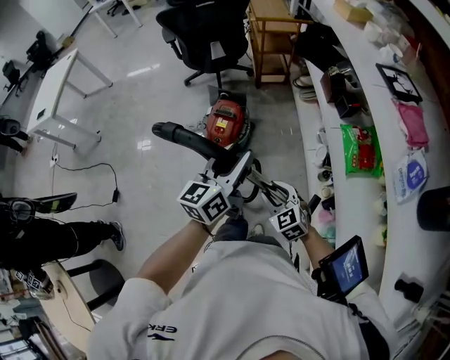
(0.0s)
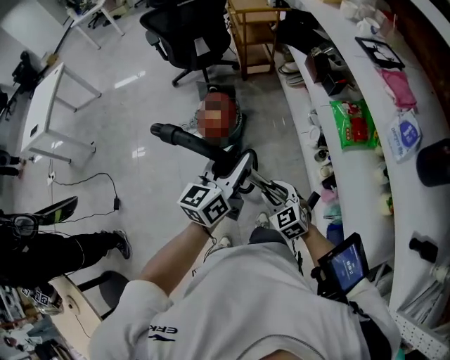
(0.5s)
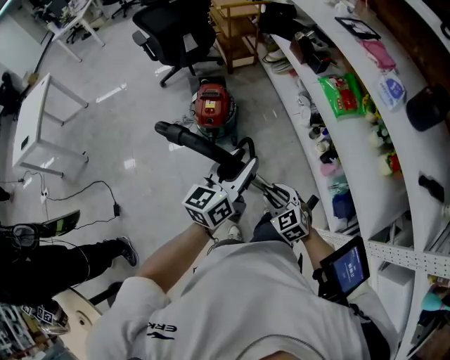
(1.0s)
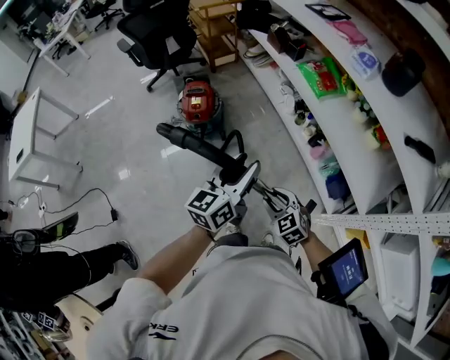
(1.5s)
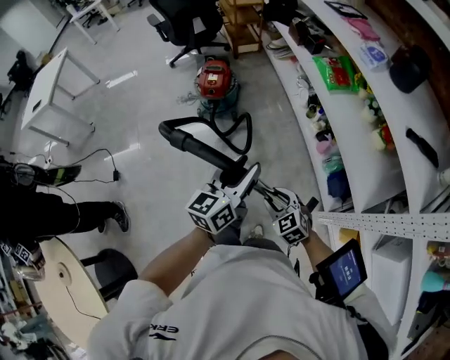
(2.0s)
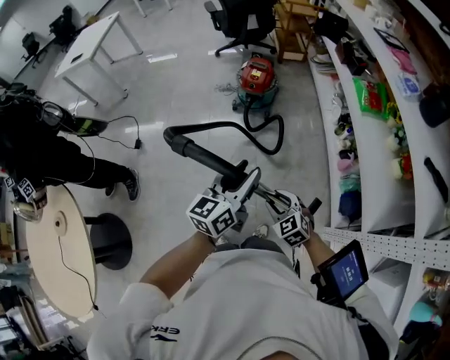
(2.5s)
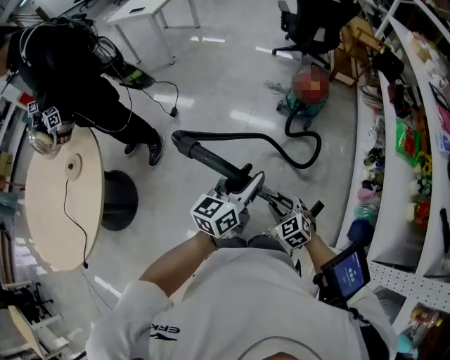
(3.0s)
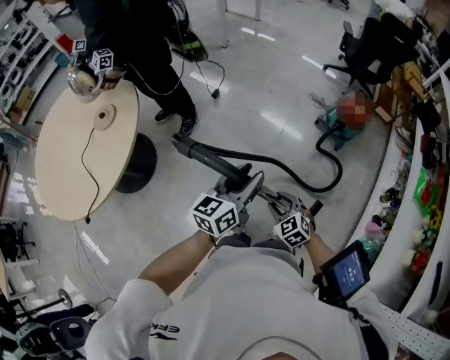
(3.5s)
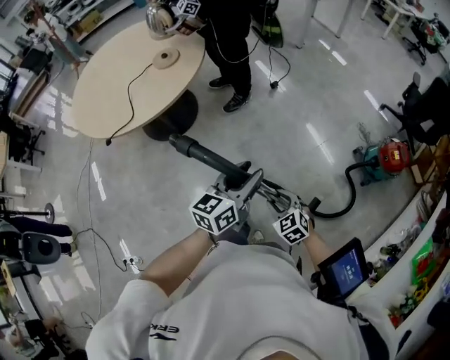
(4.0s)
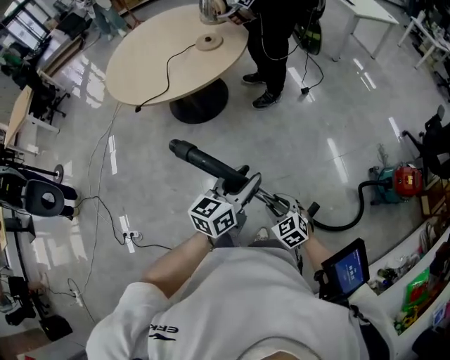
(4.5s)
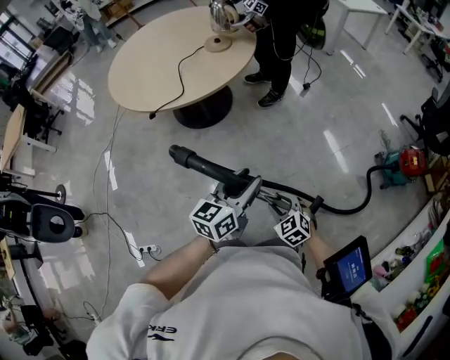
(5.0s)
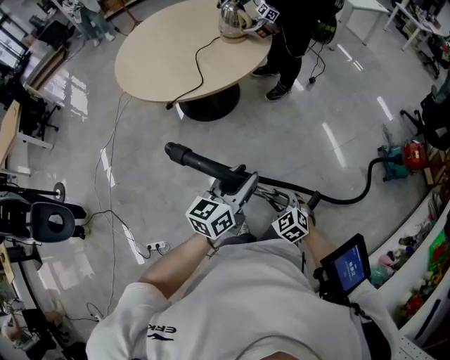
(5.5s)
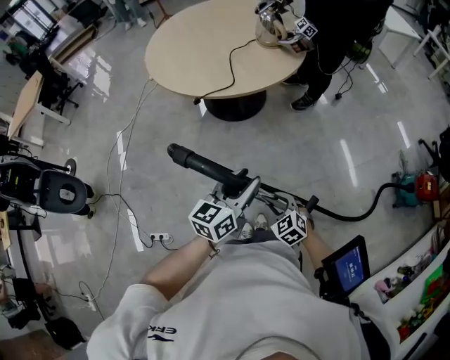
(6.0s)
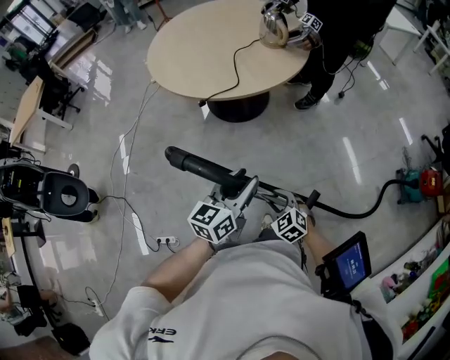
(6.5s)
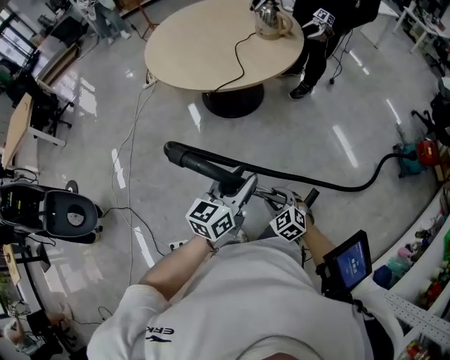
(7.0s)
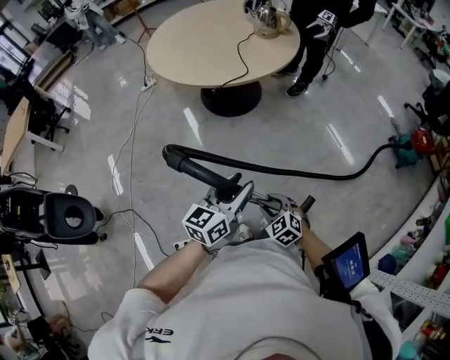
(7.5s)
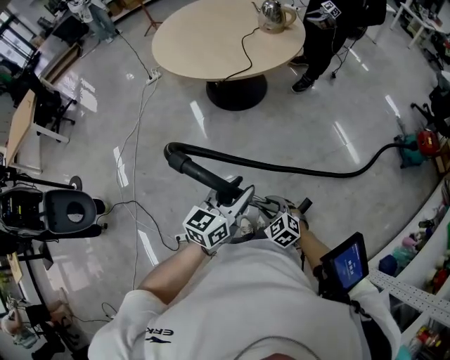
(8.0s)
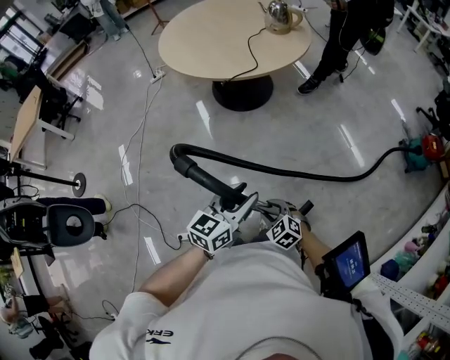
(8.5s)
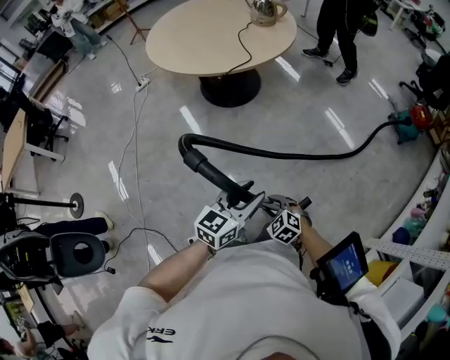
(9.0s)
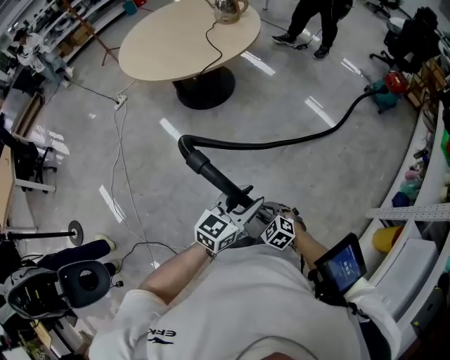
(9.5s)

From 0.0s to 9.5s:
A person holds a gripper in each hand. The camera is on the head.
From 0.0s to 2.0s: The two grippers travel together, backward, some 40 cm.
From 2.0s to 4.0s: The pair of grippers is taken approximately 50 cm. The left gripper rotates about 70 degrees; the right gripper rotates approximately 70 degrees.
From 4.0s to 5.5s: Both grippers move to the left, about 35 cm.
From 5.5s to 7.5s: Both grippers move to the left and backward, some 30 cm.
From 7.5s to 9.5s: The left gripper is displaced backward by some 20 cm, and changes its angle by some 30 degrees. Meanwhile the right gripper travels backward and to the left by approximately 20 cm.

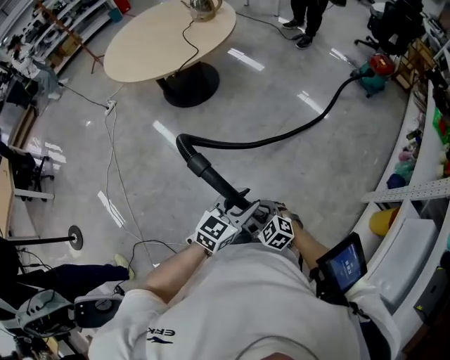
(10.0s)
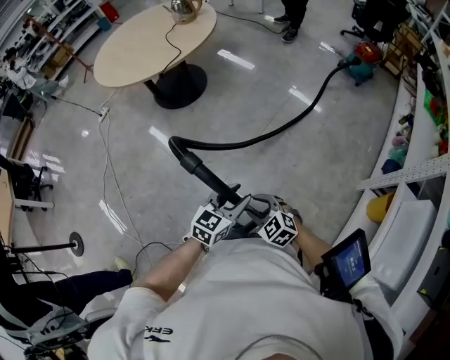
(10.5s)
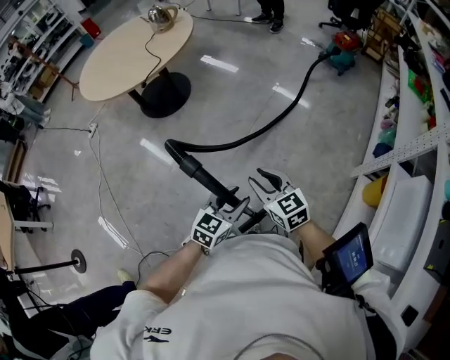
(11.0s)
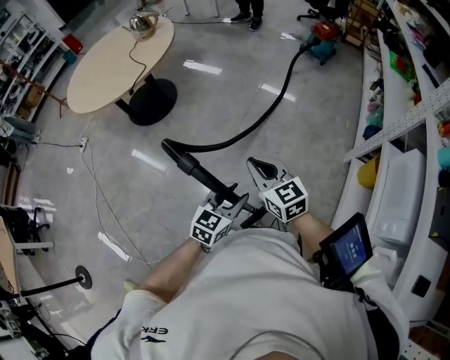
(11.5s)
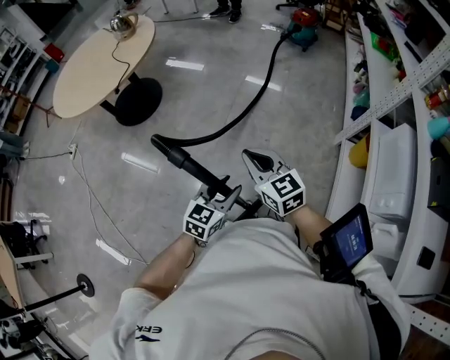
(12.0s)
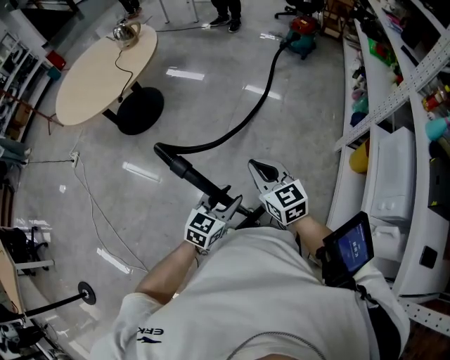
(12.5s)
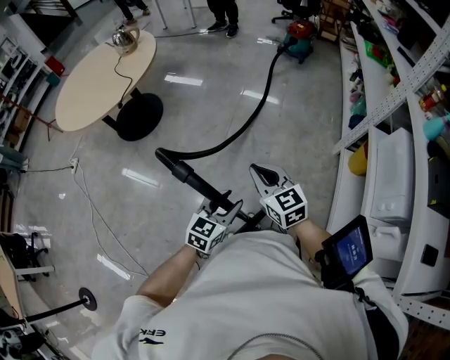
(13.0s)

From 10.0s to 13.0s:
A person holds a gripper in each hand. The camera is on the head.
From 10.0s to 11.5s: The left gripper heads backward and to the right, covering approximately 10 cm; the right gripper shifts some 20 cm upward and to the right, tilts its fingers about 30 degrees upward, and closes its fingers.
From 11.5s to 13.0s: The grippers make only small movements.

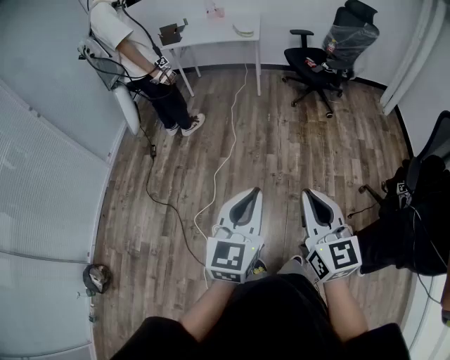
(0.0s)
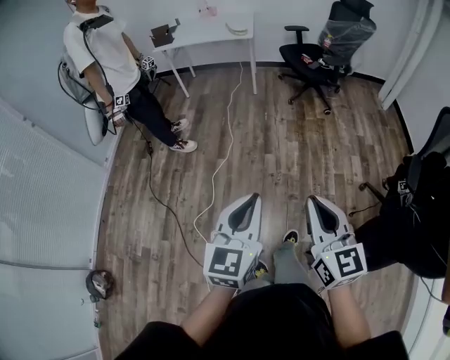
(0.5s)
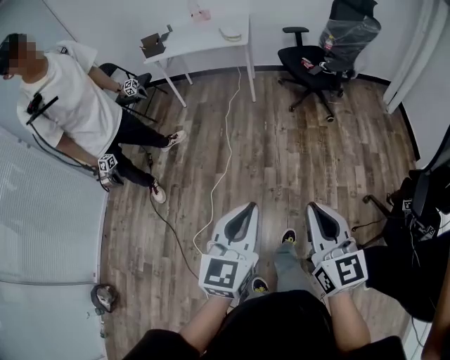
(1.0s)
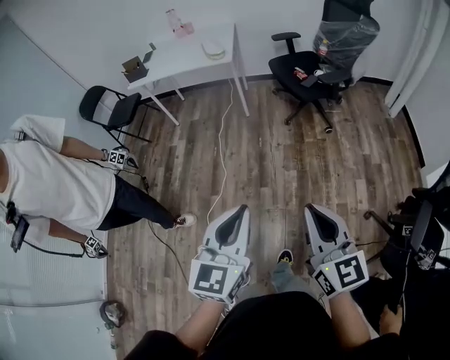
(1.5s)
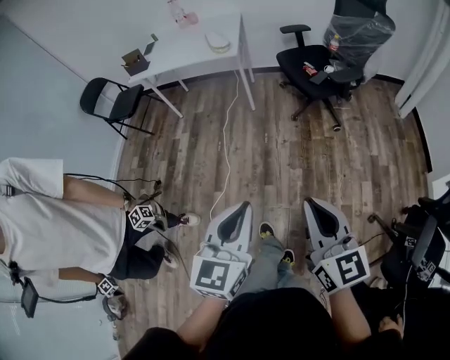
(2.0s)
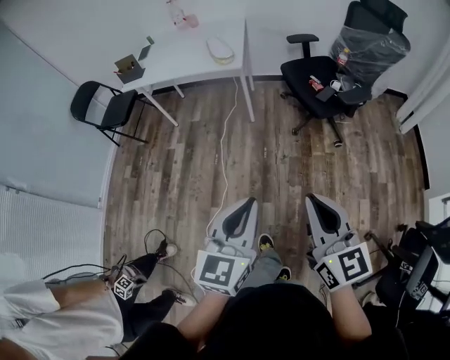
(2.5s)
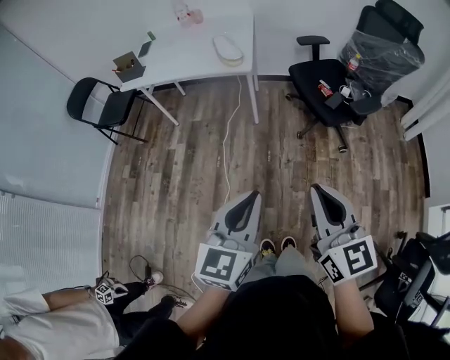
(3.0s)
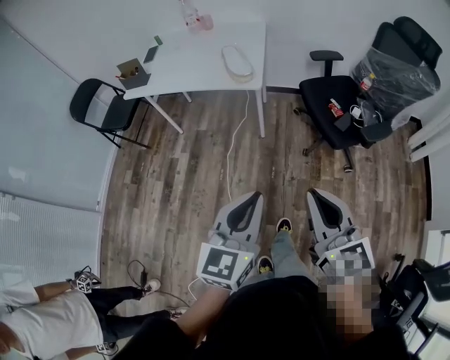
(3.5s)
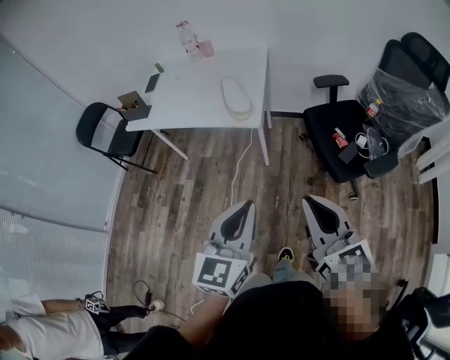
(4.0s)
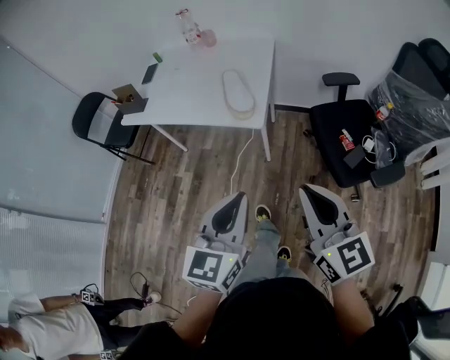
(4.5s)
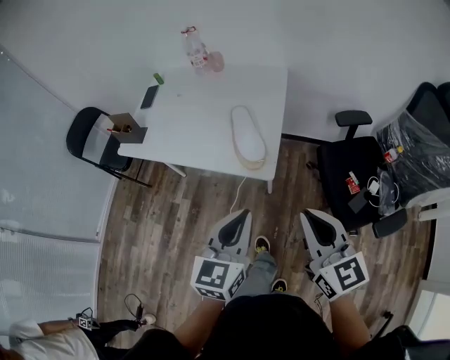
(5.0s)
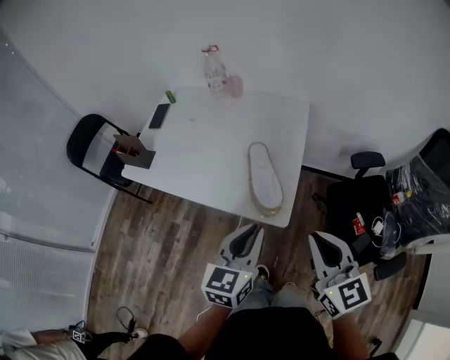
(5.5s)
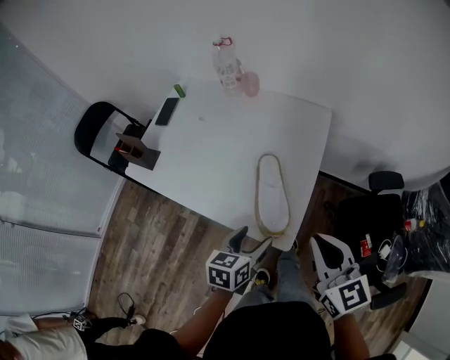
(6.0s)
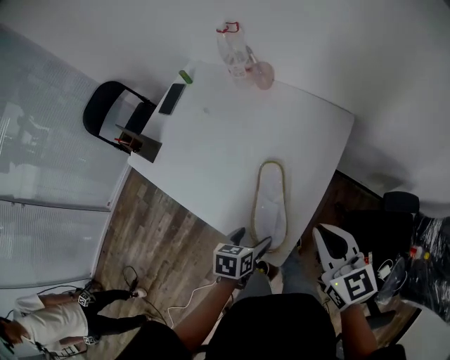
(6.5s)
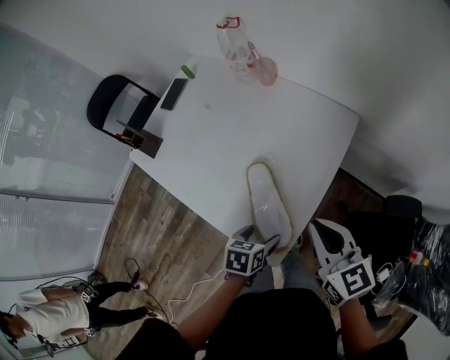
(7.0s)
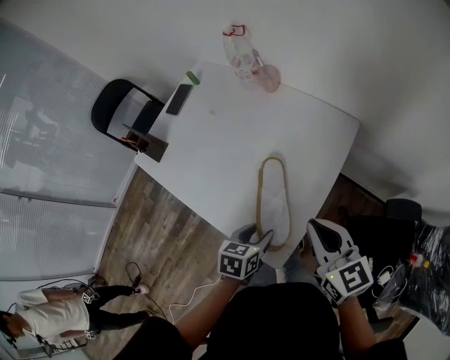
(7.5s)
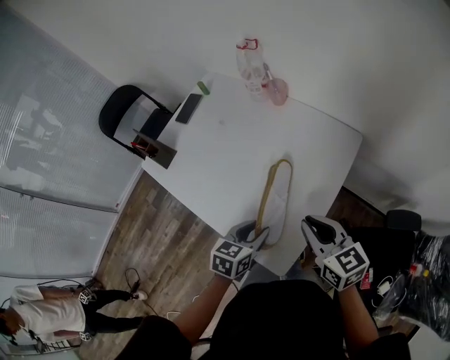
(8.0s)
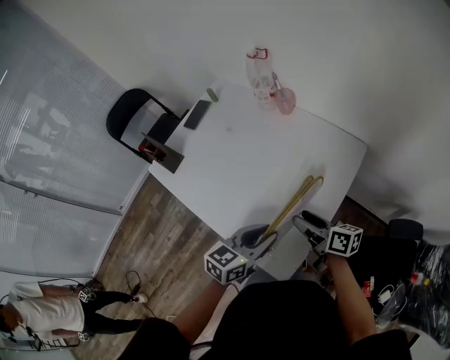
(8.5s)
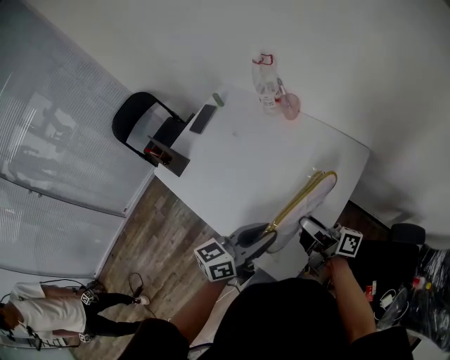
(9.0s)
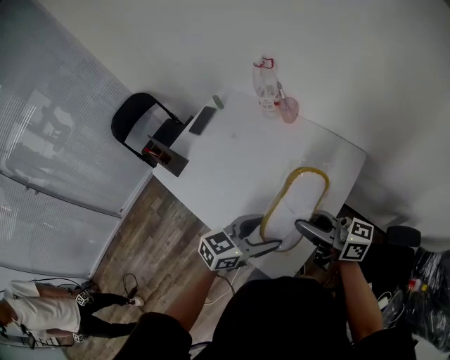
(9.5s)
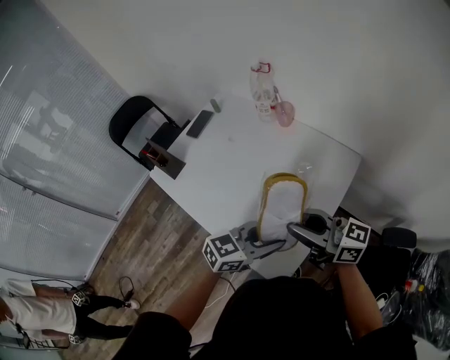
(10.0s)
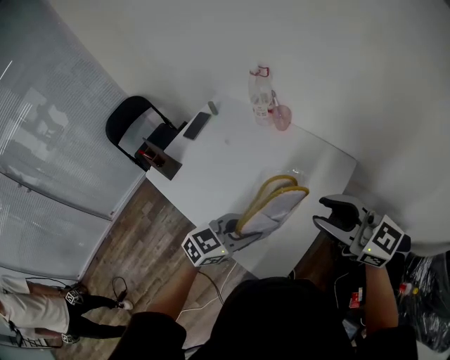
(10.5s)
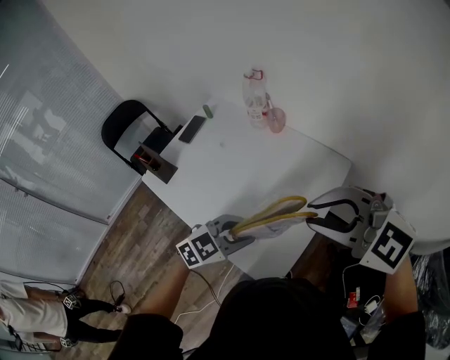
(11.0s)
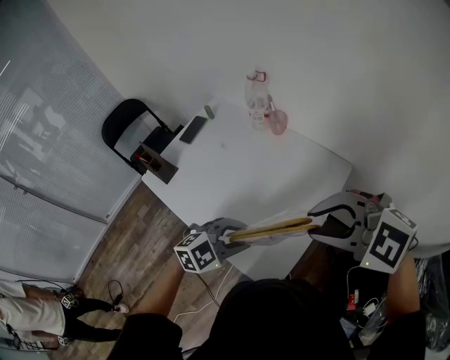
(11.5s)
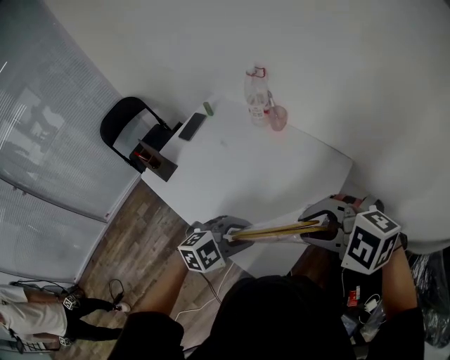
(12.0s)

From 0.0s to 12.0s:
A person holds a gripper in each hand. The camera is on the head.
From 0.0s to 2.0s: The two grippers travel together, forward, approximately 40 cm.
From 2.0s to 4.0s: The pair of grippers is taken forward, about 50 cm.
From 4.0s to 6.0s: Both grippers are carried forward, roughly 50 cm. The left gripper is displaced downward by approximately 20 cm, turns by some 40 degrees, and opens up.
From 6.0s to 8.0s: The left gripper goes about 10 cm forward, and closes its fingers; the right gripper goes some 20 cm forward and downward, and turns by some 20 degrees.
From 8.0s to 10.0s: Both grippers move upward, approximately 10 cm. The right gripper tilts its fingers approximately 30 degrees upward, and opens its fingers; the left gripper turns by approximately 40 degrees, and opens, then closes again.
From 10.0s to 12.0s: The right gripper angles its fingers downward, by about 60 degrees, while the left gripper ends up roughly 5 cm from where it was, and turns by about 40 degrees.

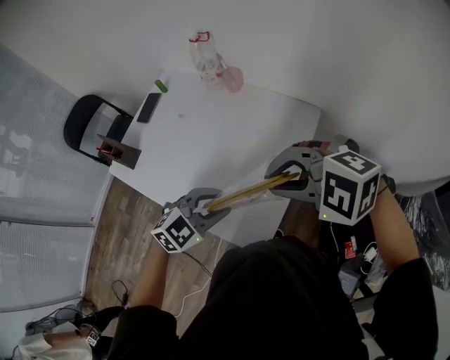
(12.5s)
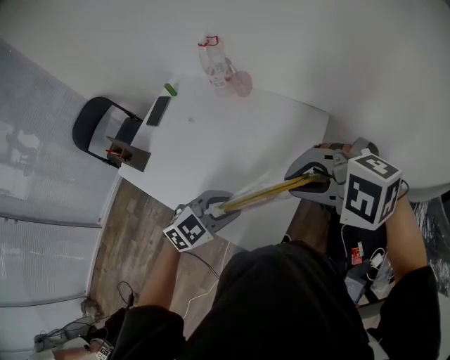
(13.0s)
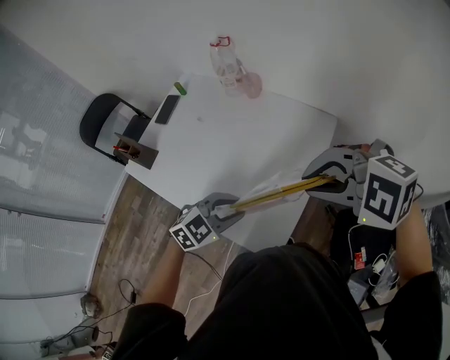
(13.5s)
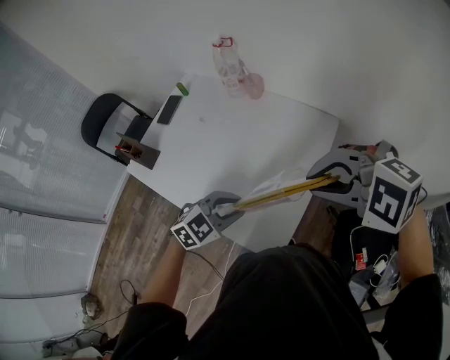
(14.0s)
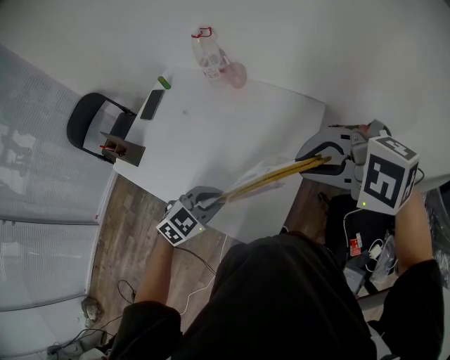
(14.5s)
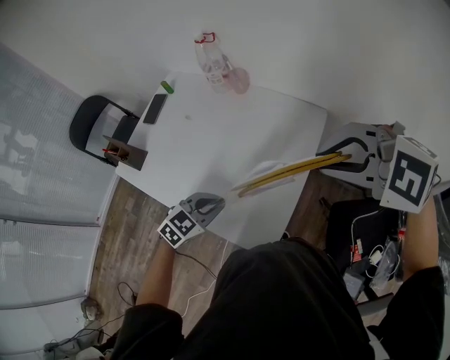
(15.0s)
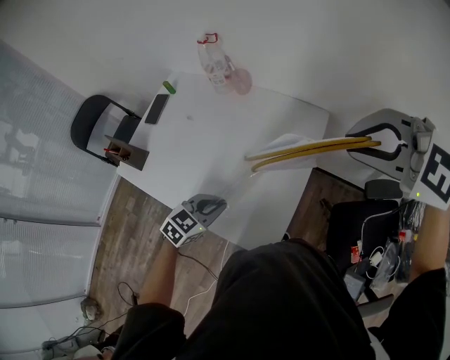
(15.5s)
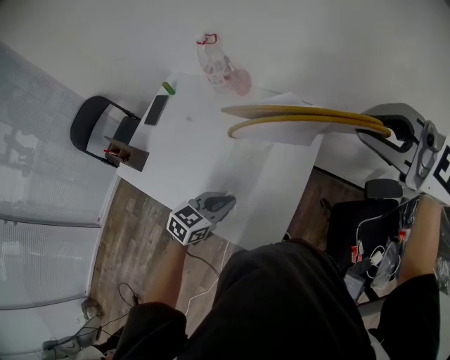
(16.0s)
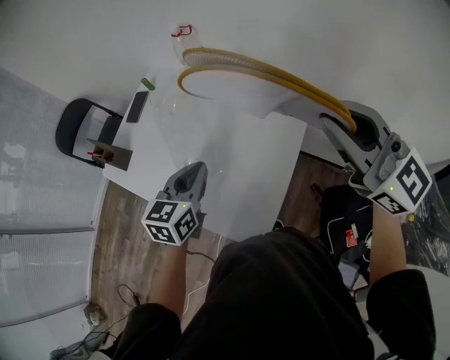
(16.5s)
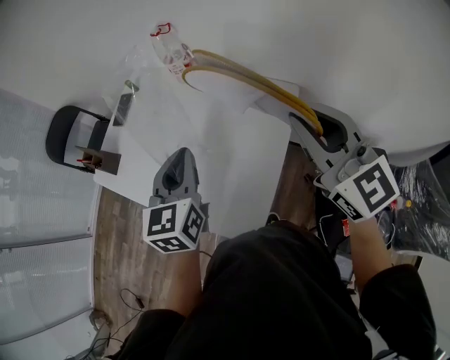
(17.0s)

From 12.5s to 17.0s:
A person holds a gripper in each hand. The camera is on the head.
From 12.5s to 14.5s: The right gripper shifts by roughly 5 cm.
From 14.5s to 17.0s: The right gripper changes place by roughly 10 cm, and tips its fingers upward by about 50 degrees. The left gripper goes some 15 cm upward, and rotates roughly 60 degrees.
